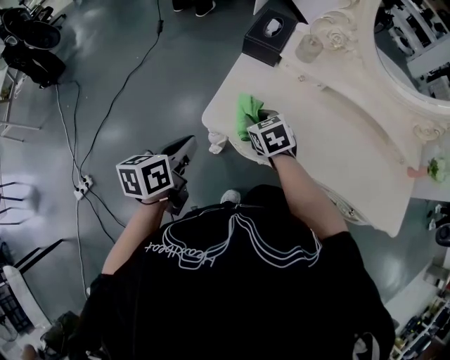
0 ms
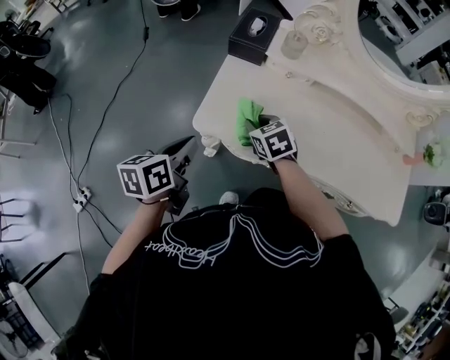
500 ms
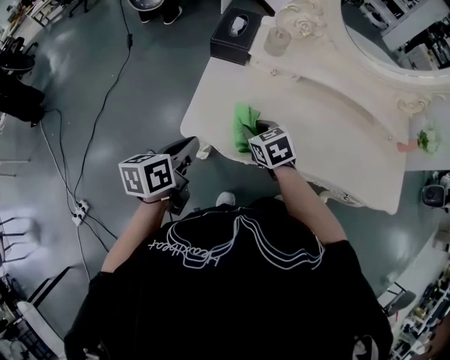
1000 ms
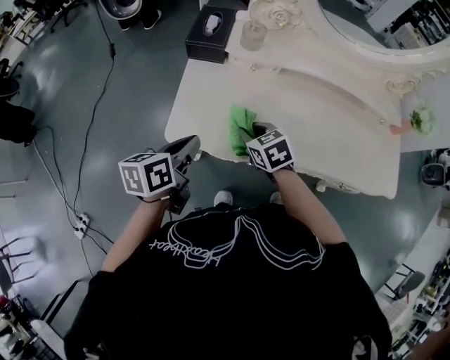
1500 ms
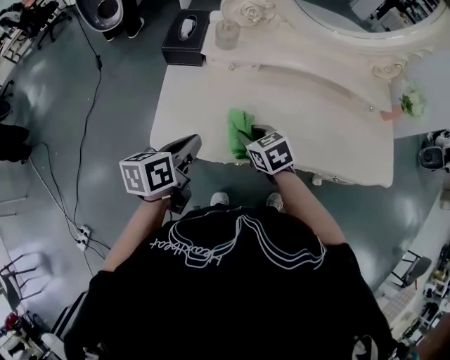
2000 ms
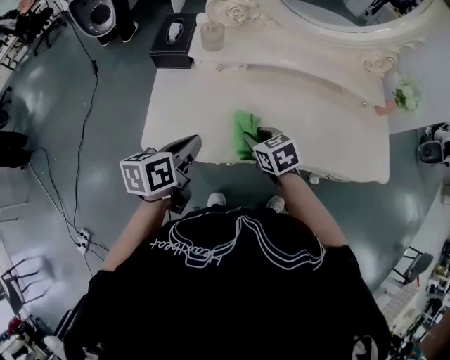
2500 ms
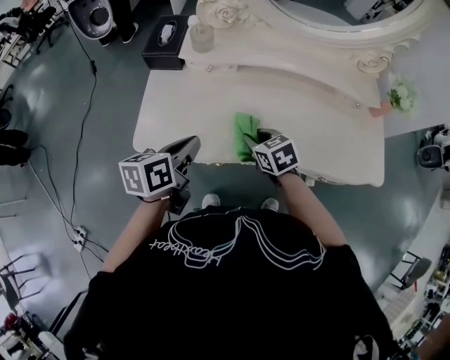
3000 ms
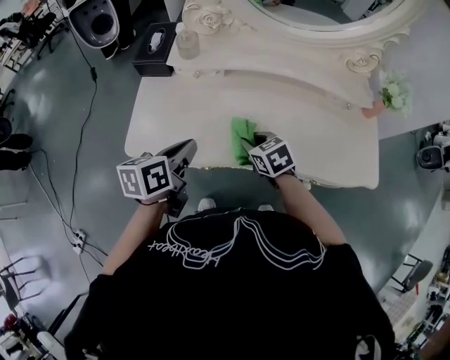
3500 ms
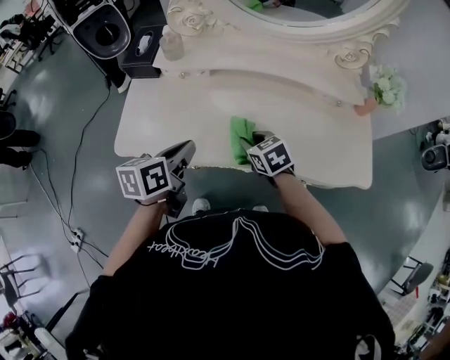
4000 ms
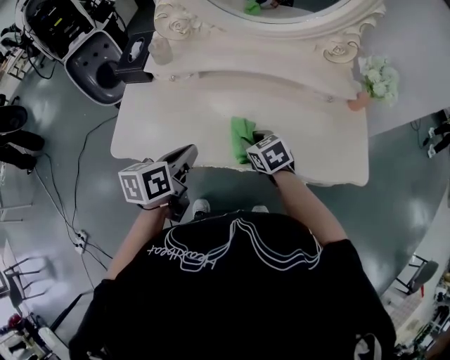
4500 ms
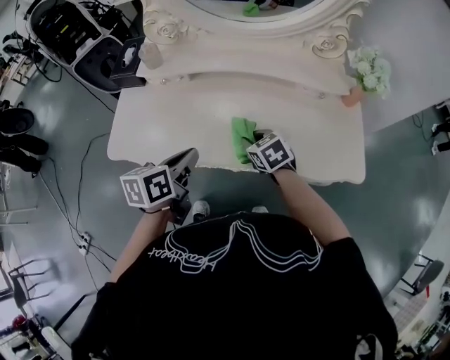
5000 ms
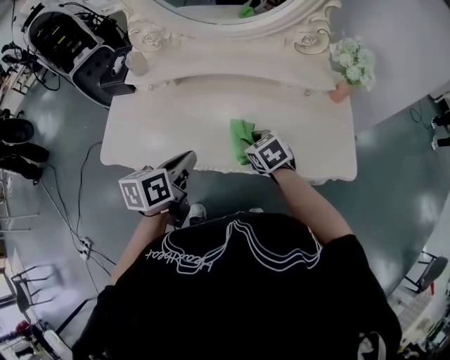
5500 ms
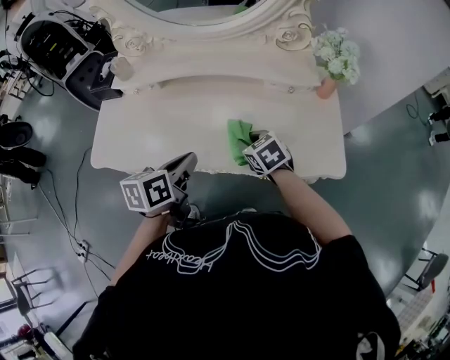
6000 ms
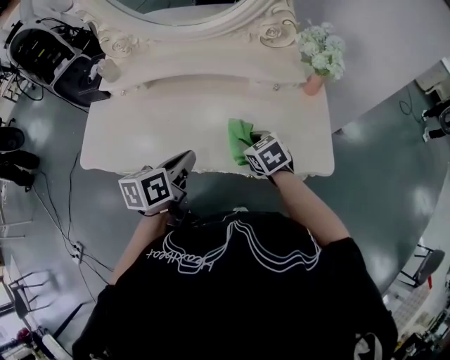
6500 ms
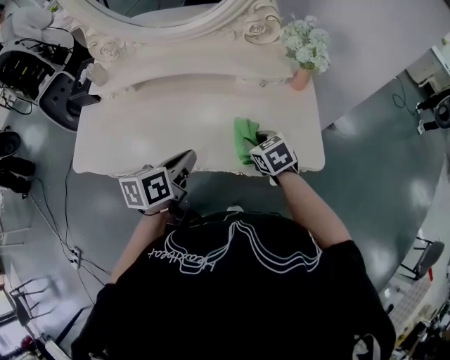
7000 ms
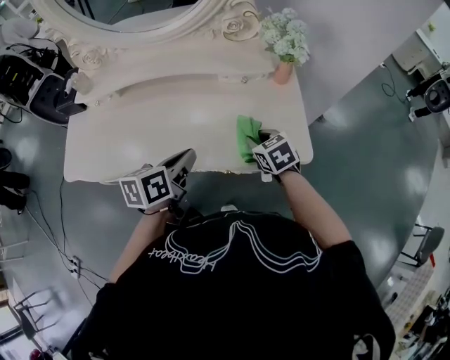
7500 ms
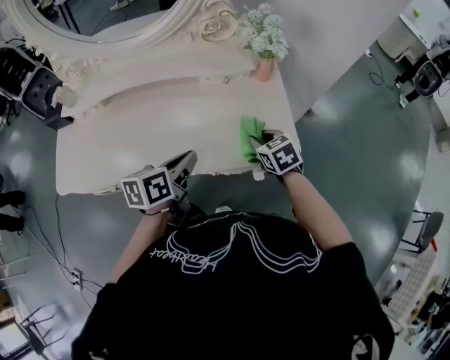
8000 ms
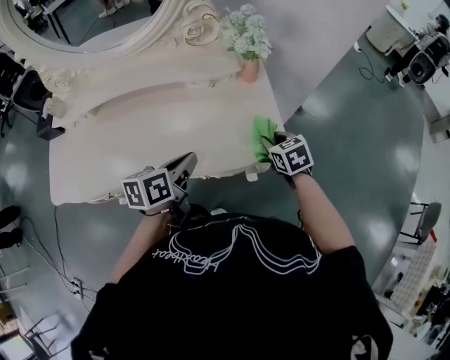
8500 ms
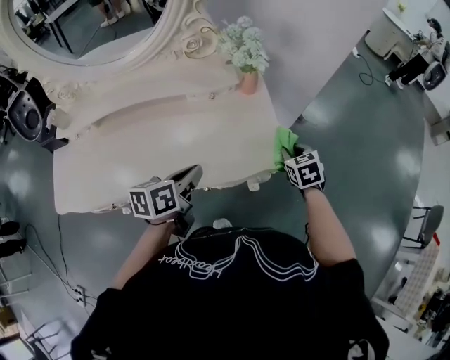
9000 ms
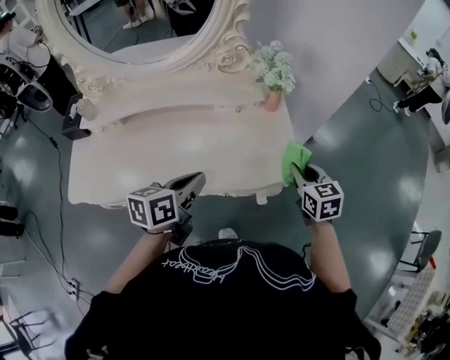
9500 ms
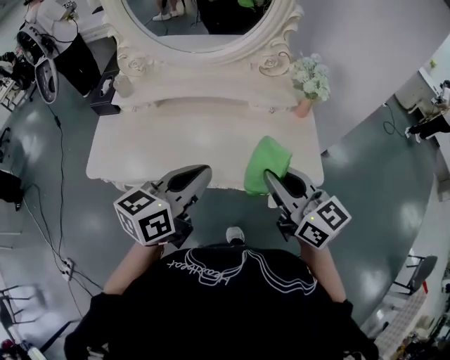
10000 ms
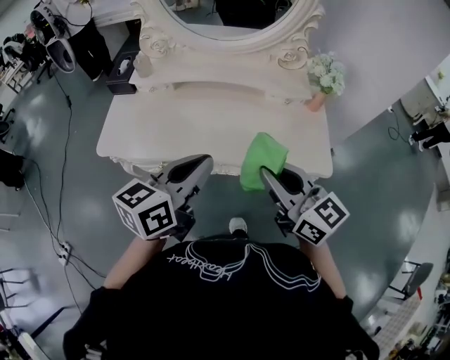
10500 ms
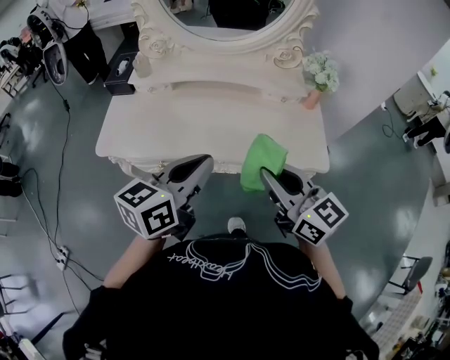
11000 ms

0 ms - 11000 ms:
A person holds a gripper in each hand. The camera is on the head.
0 ms - 2000 ms: Both grippers move to the right, some 15 cm. The left gripper turns by some 20 degrees.
2000 ms - 3500 ms: The two grippers go about 10 cm to the right.
3500 ms - 5500 ms: Both grippers travel together to the right, roughly 15 cm.
5500 ms - 7500 ms: The two grippers go some 20 cm to the right.
7500 ms - 9000 ms: The left gripper heads to the right, covering about 10 cm. The right gripper shifts about 20 cm to the right, and rotates approximately 20 degrees.
9000 ms - 11000 ms: The left gripper shifts by about 30 cm, and changes its angle by approximately 30 degrees; the right gripper ends up roughly 50 cm from where it was, and tips its fingers upward by about 40 degrees.

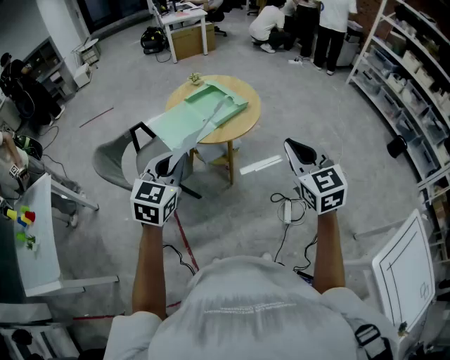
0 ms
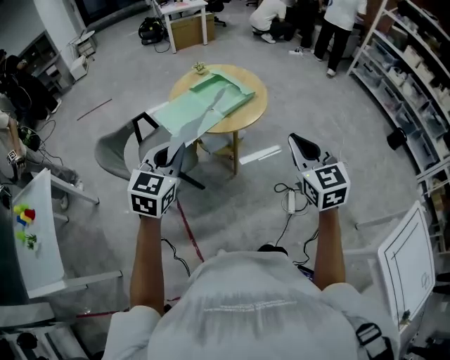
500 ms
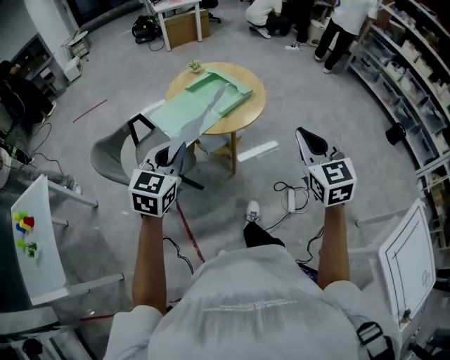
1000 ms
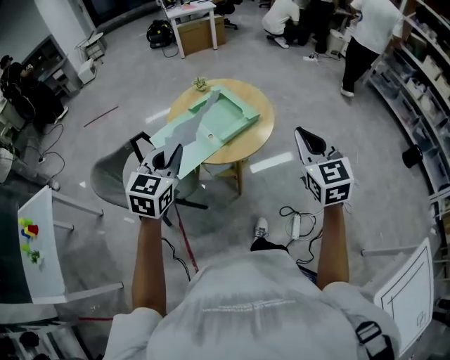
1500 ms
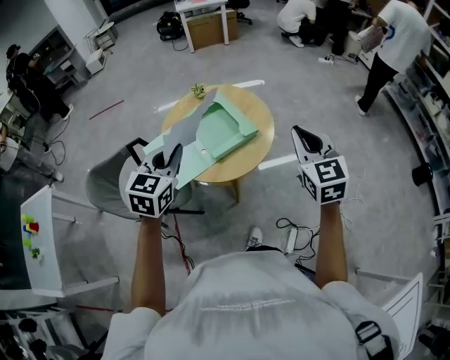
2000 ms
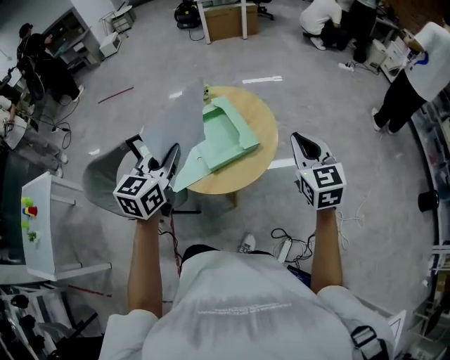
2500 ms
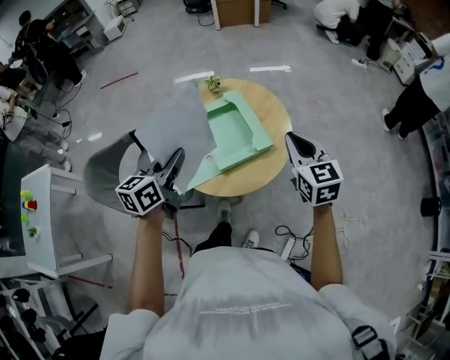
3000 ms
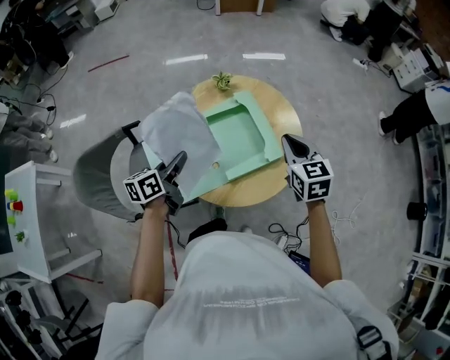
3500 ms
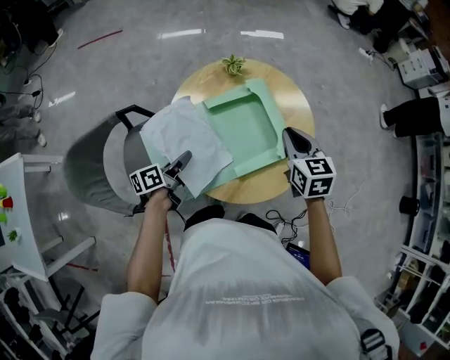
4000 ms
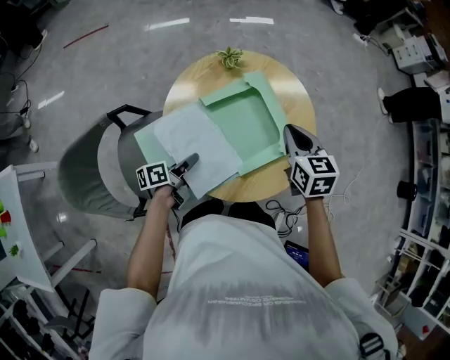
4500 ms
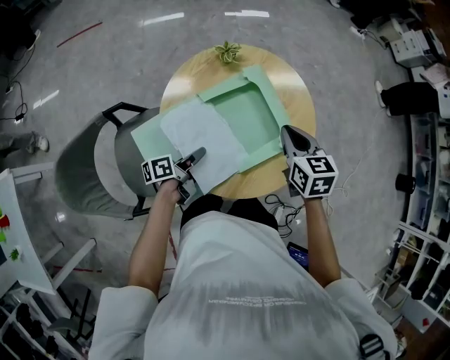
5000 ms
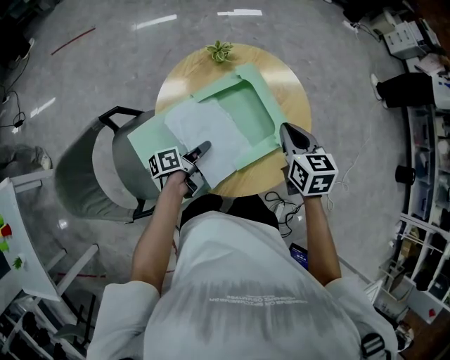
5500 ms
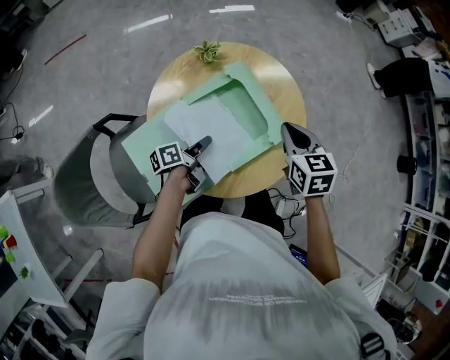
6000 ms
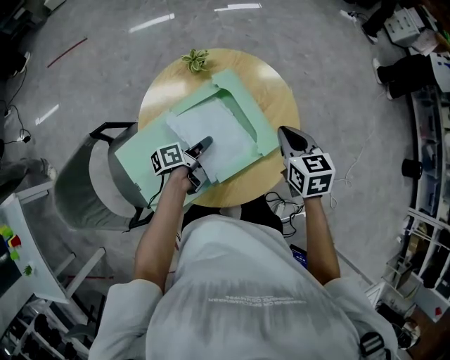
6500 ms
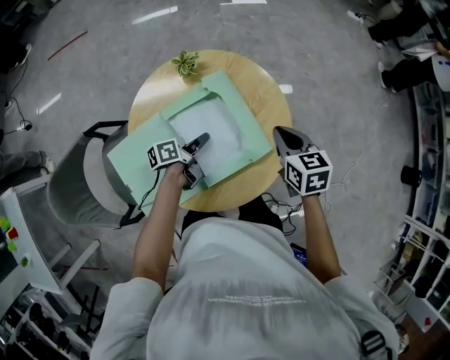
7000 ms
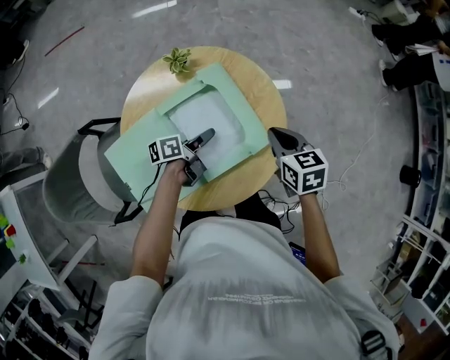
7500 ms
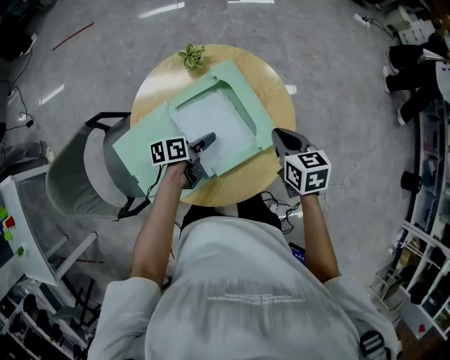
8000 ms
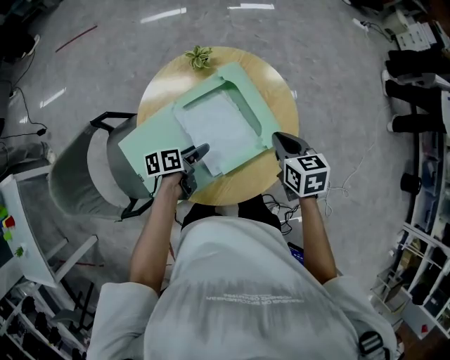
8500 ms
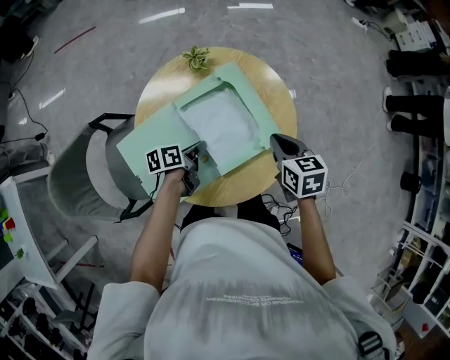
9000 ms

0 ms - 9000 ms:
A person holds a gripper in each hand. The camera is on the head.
0 ms - 2000 ms: Both grippers travel together forward, about 30 cm.
2000 ms - 4500 ms: The right gripper goes approximately 40 cm forward, downward and to the left, and turns by roughly 30 degrees. The left gripper is displaced downward and forward by about 40 cm, and rolls counterclockwise, seen from behind, by about 80 degrees.
4500 ms - 7000 ms: The left gripper shifts approximately 20 cm forward and to the right; the right gripper is displaced to the right and forward by approximately 10 cm.
7000 ms - 9000 ms: The left gripper moves backward, approximately 5 cm, and opens, then closes again.

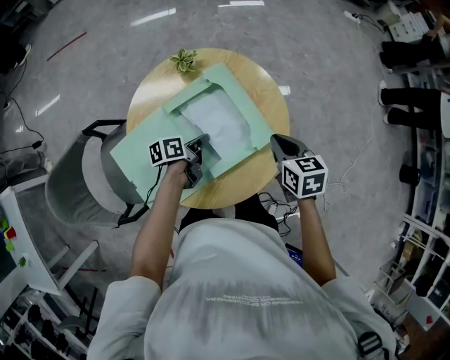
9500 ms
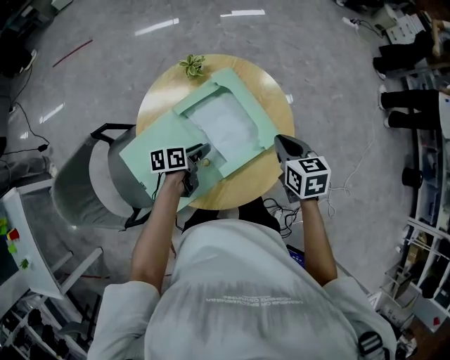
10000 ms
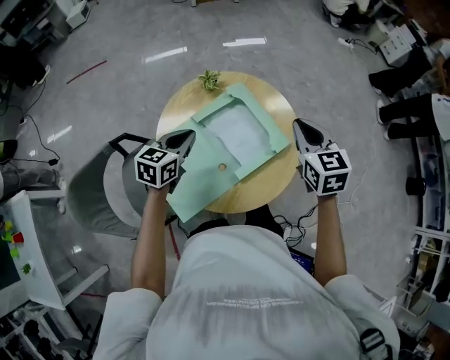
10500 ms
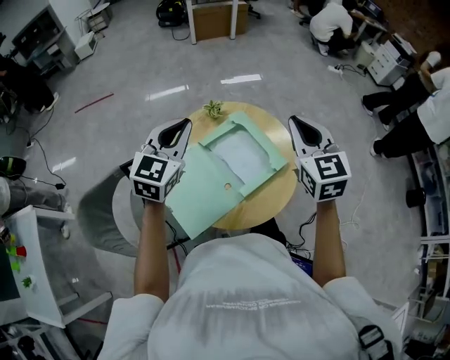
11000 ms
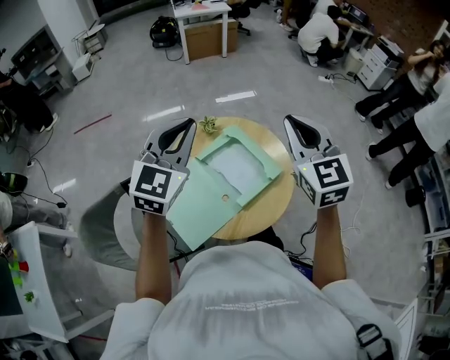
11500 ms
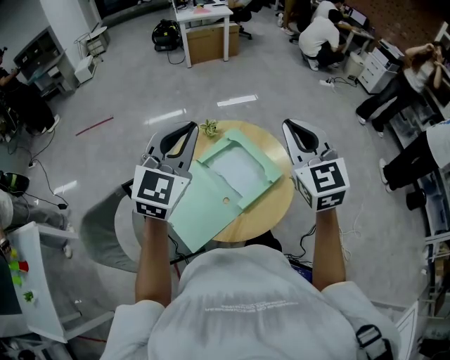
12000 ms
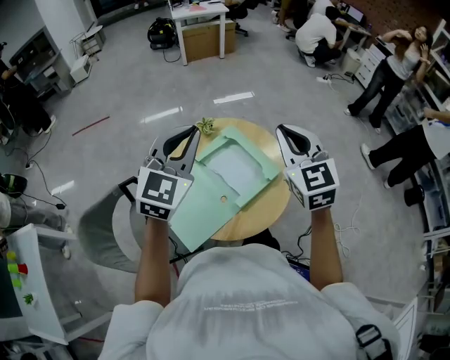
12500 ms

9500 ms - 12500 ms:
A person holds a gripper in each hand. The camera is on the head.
9500 ms - 11000 ms: Both grippers move upward, some 30 cm. The right gripper tilts its fingers roughly 30 degrees upward; the left gripper twists approximately 80 degrees clockwise, seen from behind, and opens, then closes again.
11000 ms - 12500 ms: The left gripper moves upward and to the right, some 10 cm.

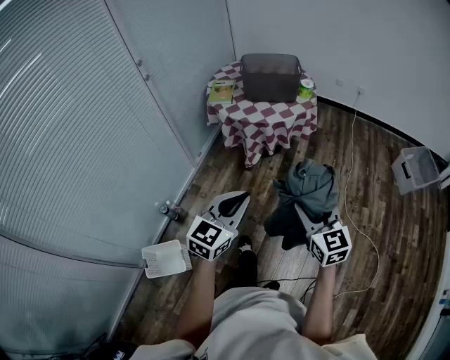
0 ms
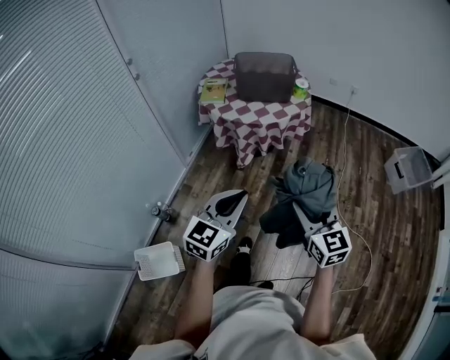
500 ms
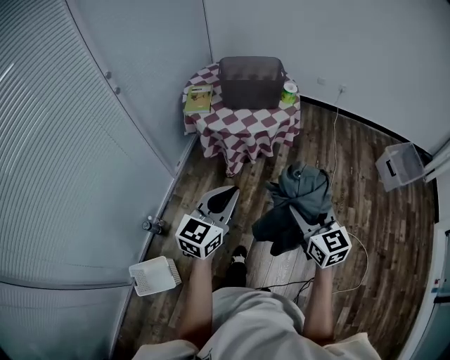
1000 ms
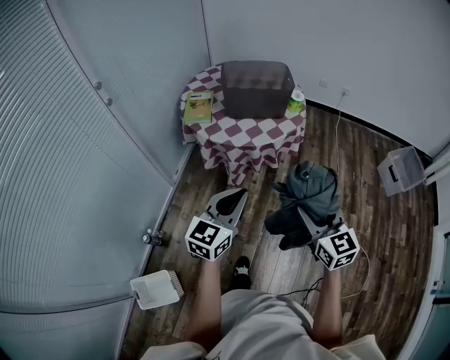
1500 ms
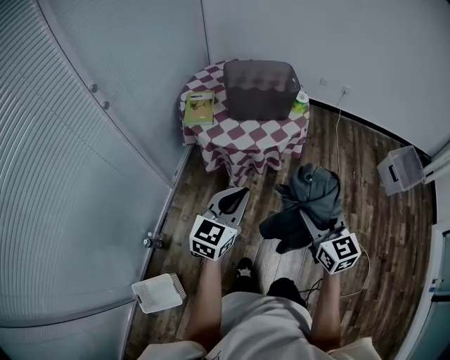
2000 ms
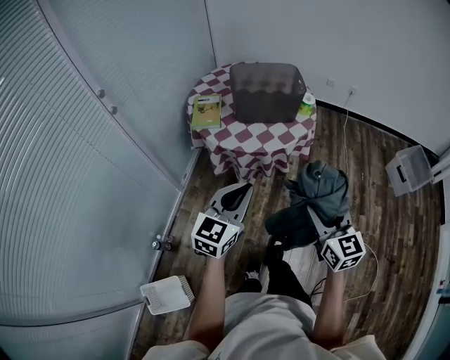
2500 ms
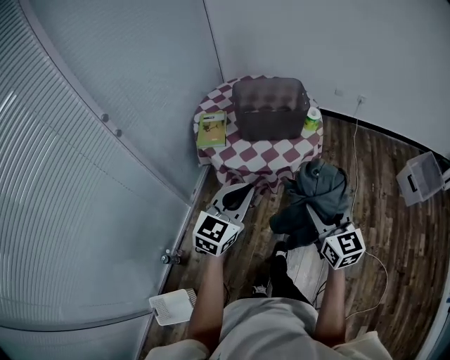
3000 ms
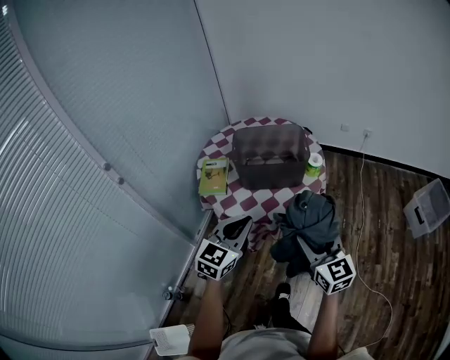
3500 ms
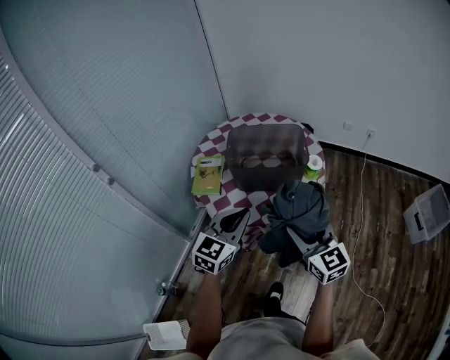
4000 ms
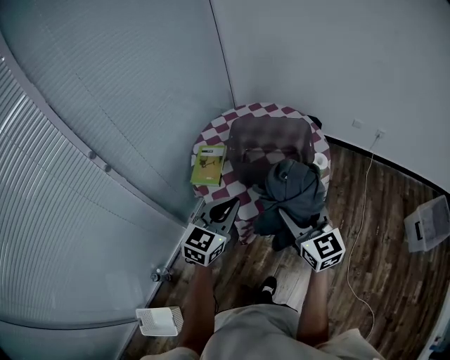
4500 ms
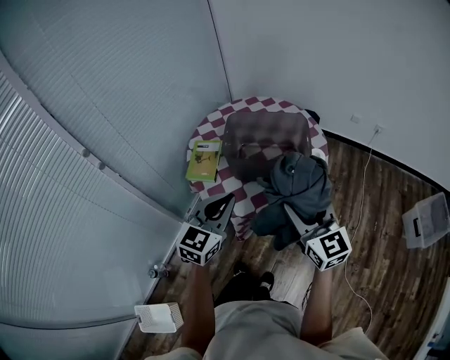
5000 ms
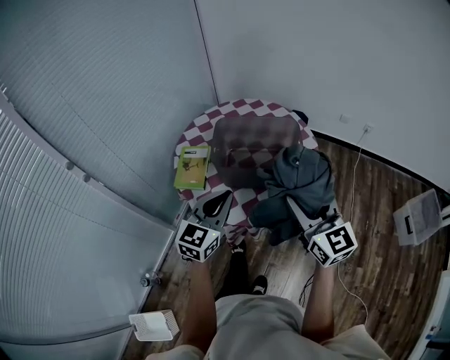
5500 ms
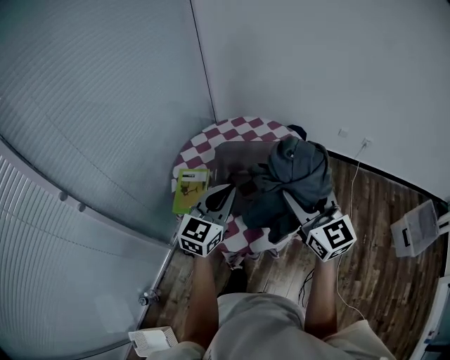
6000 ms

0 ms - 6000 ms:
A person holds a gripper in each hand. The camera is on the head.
0 ms - 2000 ms: Both grippers move forward, roughly 25 cm.
2000 ms - 4000 ms: The grippers both shift forward by roughly 25 cm.
4000 ms - 6000 ms: The left gripper heads forward, covering approximately 20 cm; the right gripper travels forward and upward by approximately 25 cm.
